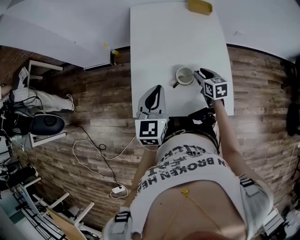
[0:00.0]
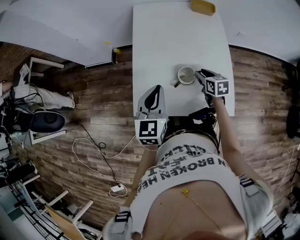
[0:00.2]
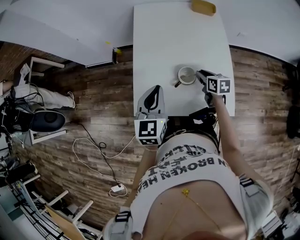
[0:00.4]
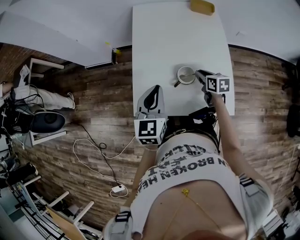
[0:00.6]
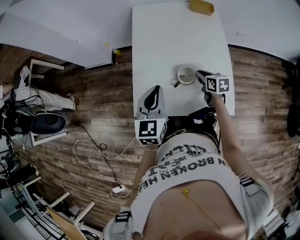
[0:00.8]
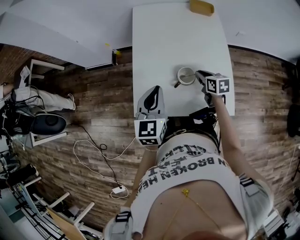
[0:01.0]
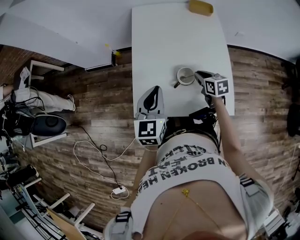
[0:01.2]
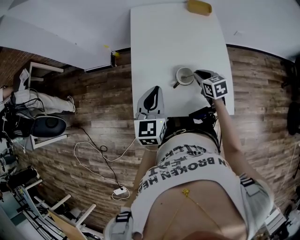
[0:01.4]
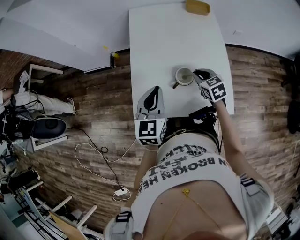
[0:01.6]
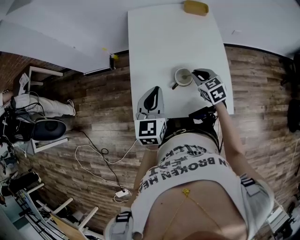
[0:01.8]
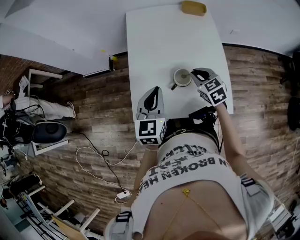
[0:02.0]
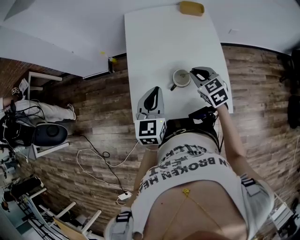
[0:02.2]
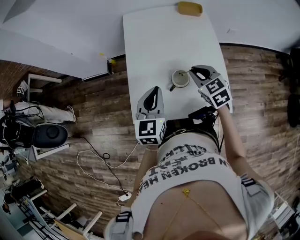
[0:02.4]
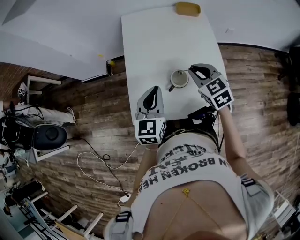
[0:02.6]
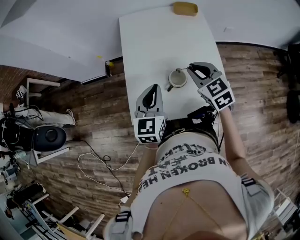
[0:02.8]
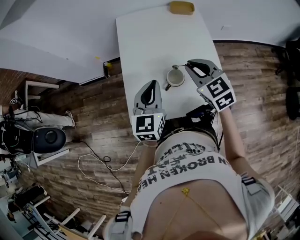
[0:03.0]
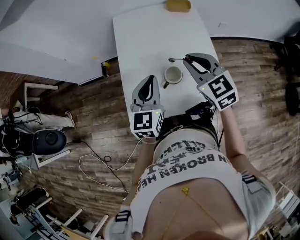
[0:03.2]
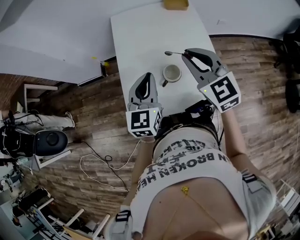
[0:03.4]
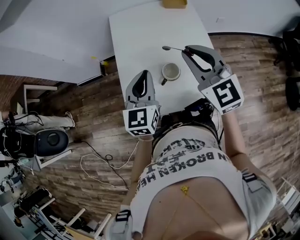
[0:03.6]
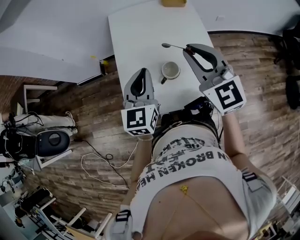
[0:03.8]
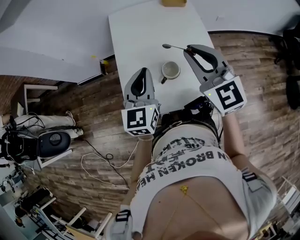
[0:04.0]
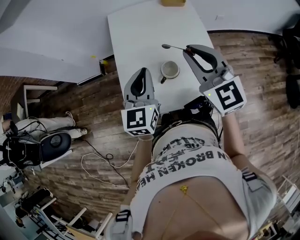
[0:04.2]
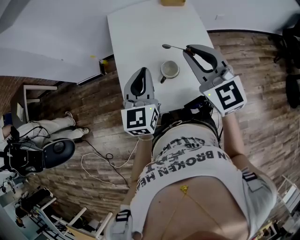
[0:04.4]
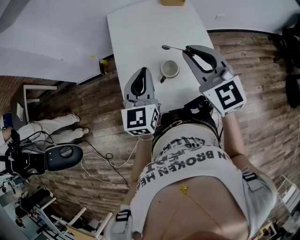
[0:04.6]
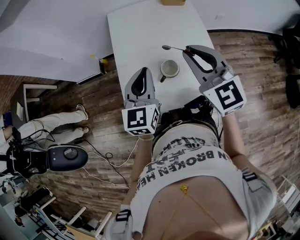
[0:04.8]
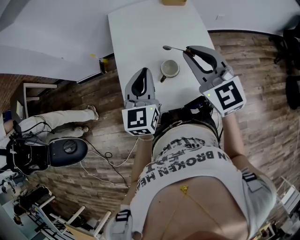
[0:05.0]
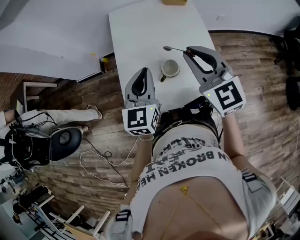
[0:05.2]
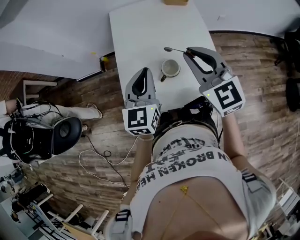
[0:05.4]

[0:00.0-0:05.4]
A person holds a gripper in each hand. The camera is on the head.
0:00.0 to 0:01.4: The right gripper closes its fingers.
0:01.4 to 0:02.8: The right gripper heads upward, covering roughly 15 cm, and turns by about 20 degrees.
0:02.8 to 0:04.0: The left gripper is displaced upward by some 5 cm; the right gripper travels upward by about 15 cm, and swivels some 30 degrees.
0:04.0 to 0:05.4: The grippers stay close to where they were, moving slightly.

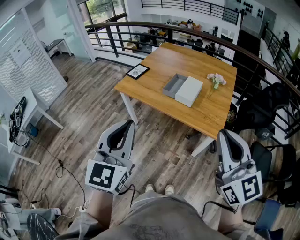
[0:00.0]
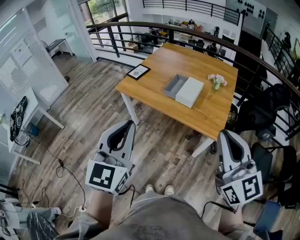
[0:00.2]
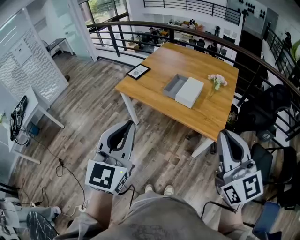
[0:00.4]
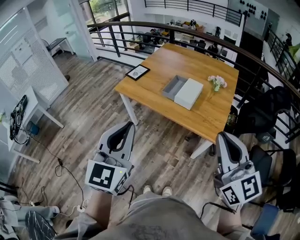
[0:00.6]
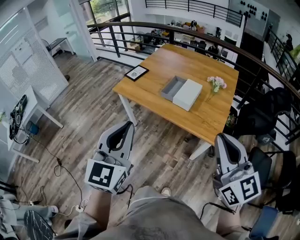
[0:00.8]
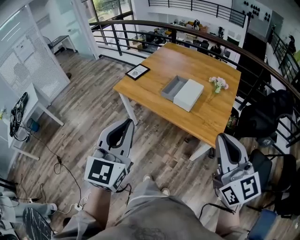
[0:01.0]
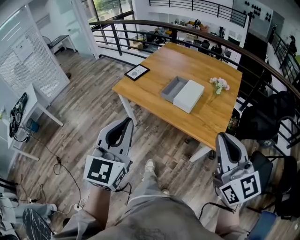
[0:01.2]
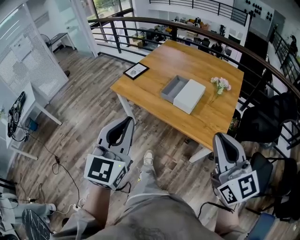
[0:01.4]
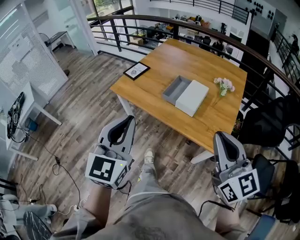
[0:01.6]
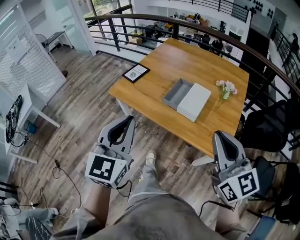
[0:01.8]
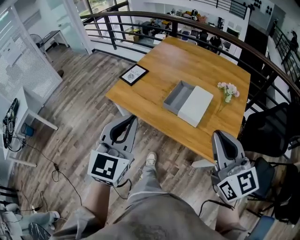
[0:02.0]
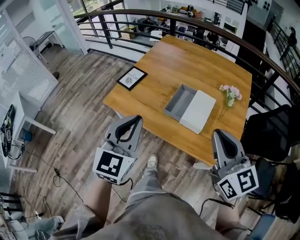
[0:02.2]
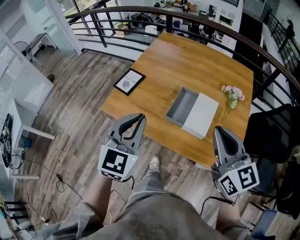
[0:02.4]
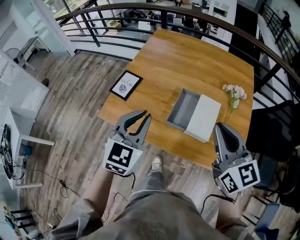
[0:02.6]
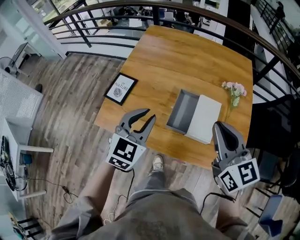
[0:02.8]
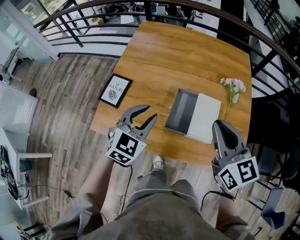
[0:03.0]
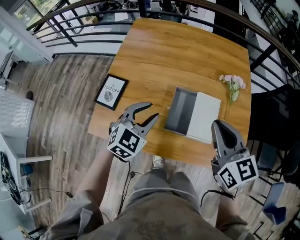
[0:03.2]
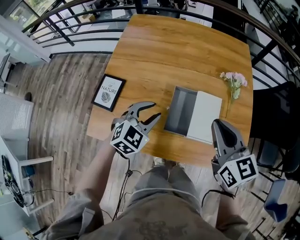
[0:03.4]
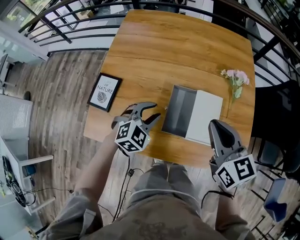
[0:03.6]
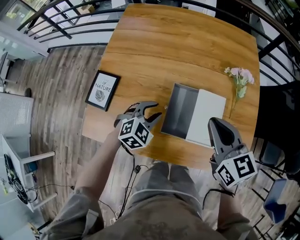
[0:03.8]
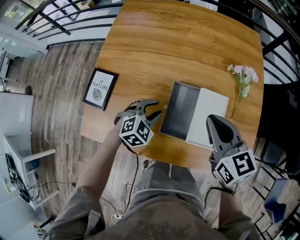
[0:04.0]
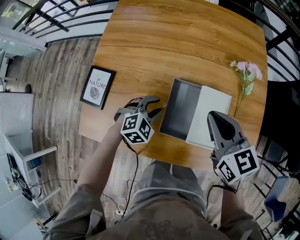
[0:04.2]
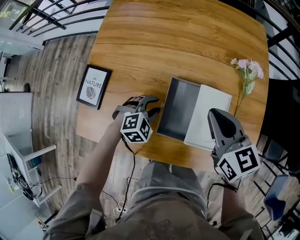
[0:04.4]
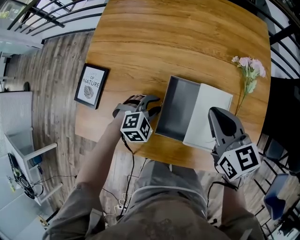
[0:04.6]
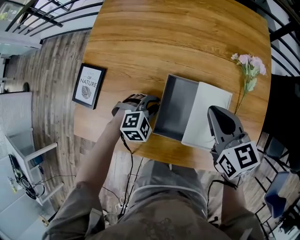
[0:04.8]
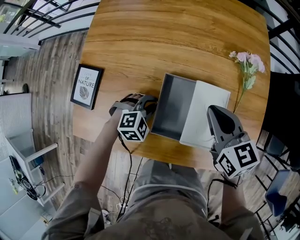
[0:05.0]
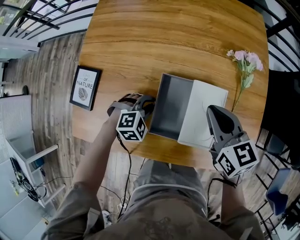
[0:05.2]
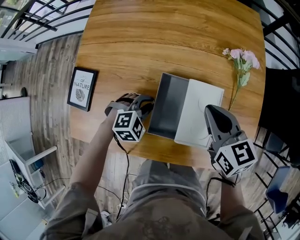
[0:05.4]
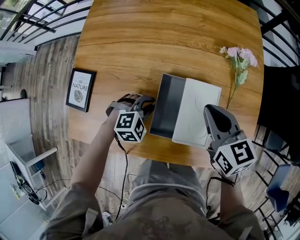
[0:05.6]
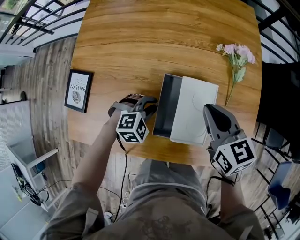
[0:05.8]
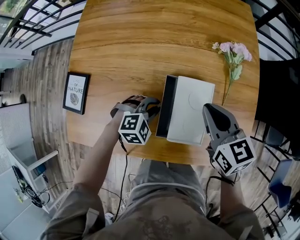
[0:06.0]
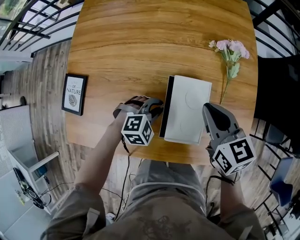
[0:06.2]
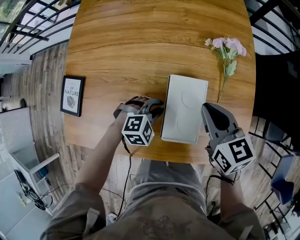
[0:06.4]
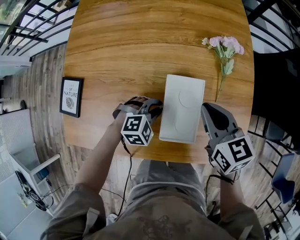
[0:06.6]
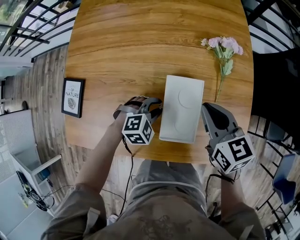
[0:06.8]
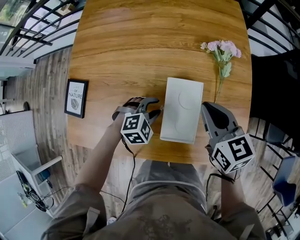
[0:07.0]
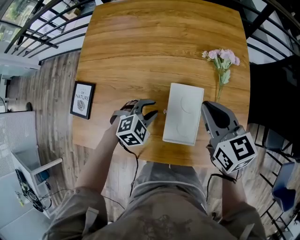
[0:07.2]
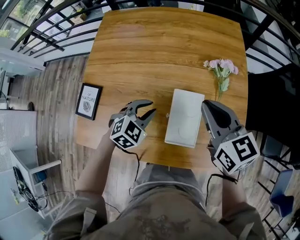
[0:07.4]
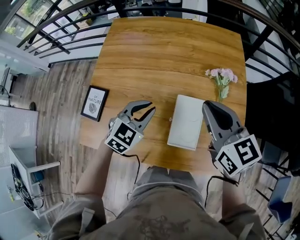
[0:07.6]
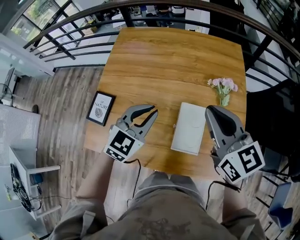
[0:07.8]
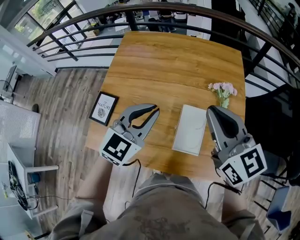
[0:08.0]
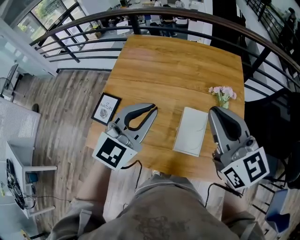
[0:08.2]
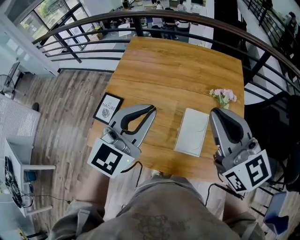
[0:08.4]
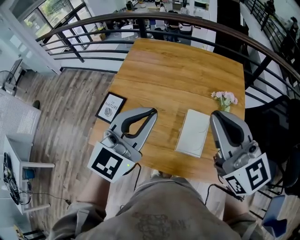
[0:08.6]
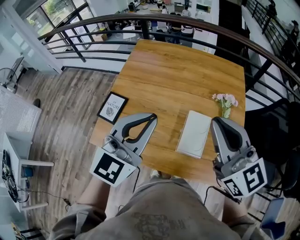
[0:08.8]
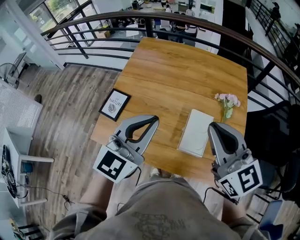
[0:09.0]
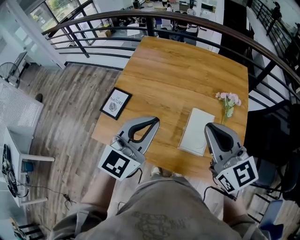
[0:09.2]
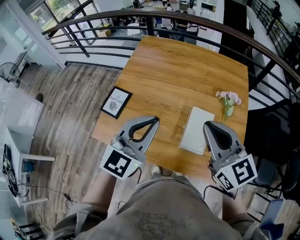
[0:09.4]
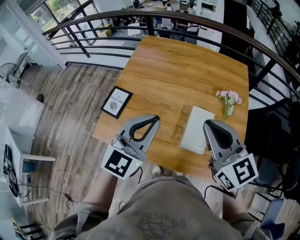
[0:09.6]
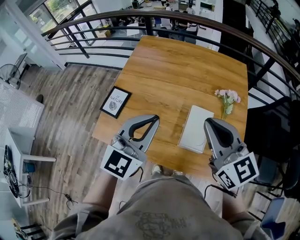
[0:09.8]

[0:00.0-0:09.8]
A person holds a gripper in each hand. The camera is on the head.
0:00.0 to 0:01.4: The left gripper is displaced forward by some 10 cm. The right gripper travels forward and downward by approximately 10 cm.
0:01.4 to 0:02.8: Both grippers move forward, approximately 40 cm. The left gripper rotates roughly 30 degrees.
0:02.8 to 0:04.2: Both grippers move downward and forward, about 25 cm. The left gripper turns by approximately 40 degrees.
0:04.2 to 0:05.6: The right gripper is displaced downward and to the right by roughly 5 cm. The left gripper ends up about 5 cm from where it was.
0:05.6 to 0:07.0: Both grippers travel together to the right, approximately 5 cm. The left gripper opens up.
0:07.0 to 0:08.4: Both grippers travel together upward, approximately 35 cm. The right gripper swivels about 30 degrees; the left gripper tips its fingers upward by some 60 degrees, and closes up.
0:08.4 to 0:09.8: The right gripper travels downward by some 5 cm. Meanwhile the left gripper ends up roughly 5 cm from where it was.

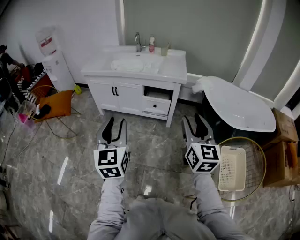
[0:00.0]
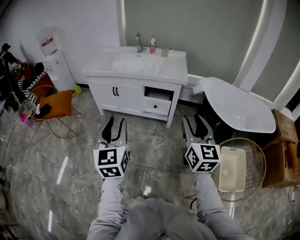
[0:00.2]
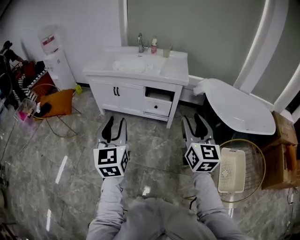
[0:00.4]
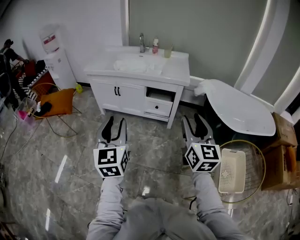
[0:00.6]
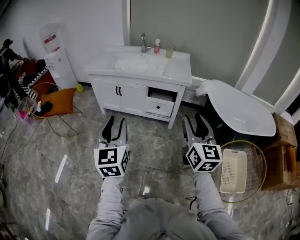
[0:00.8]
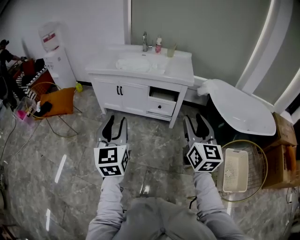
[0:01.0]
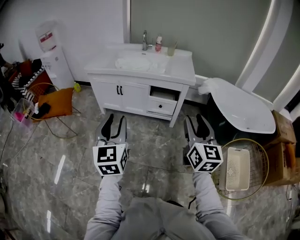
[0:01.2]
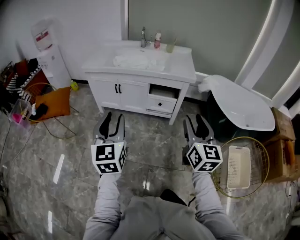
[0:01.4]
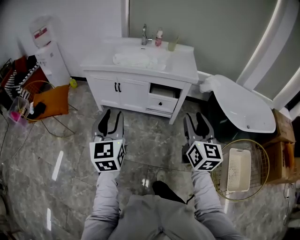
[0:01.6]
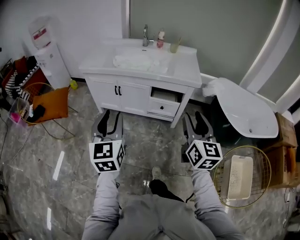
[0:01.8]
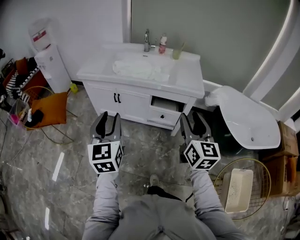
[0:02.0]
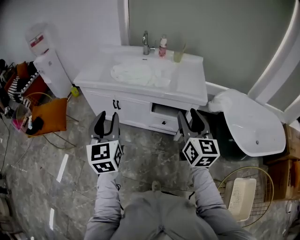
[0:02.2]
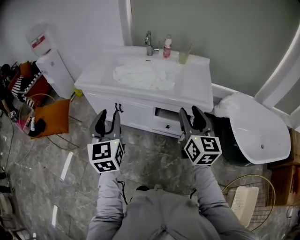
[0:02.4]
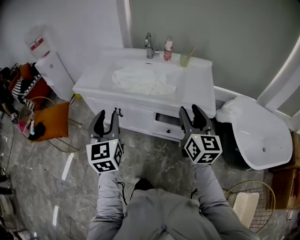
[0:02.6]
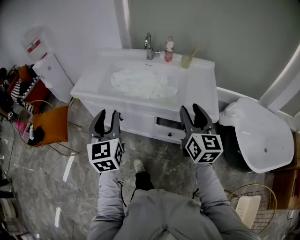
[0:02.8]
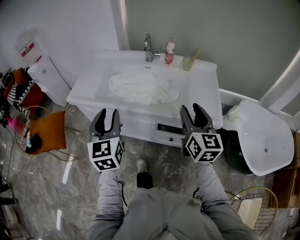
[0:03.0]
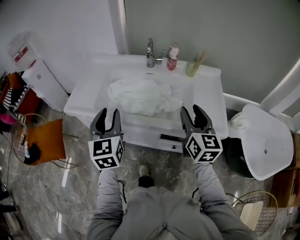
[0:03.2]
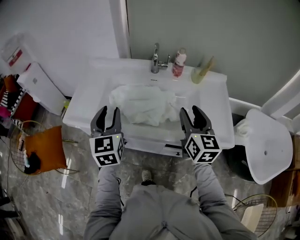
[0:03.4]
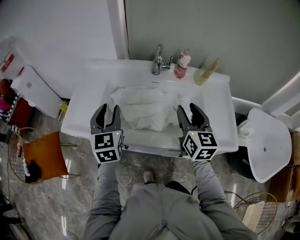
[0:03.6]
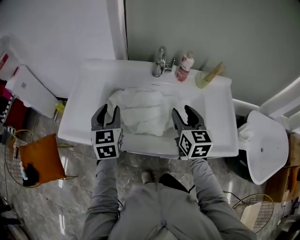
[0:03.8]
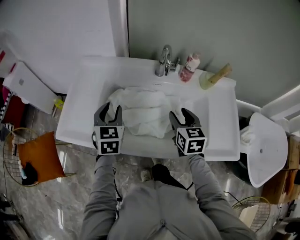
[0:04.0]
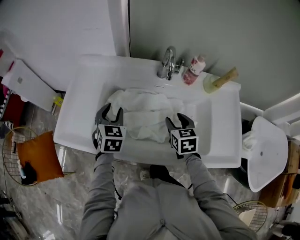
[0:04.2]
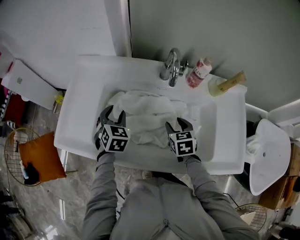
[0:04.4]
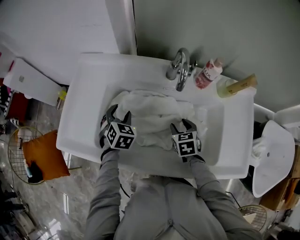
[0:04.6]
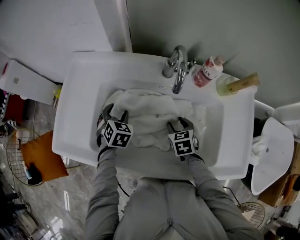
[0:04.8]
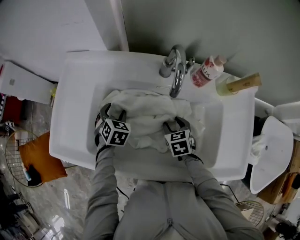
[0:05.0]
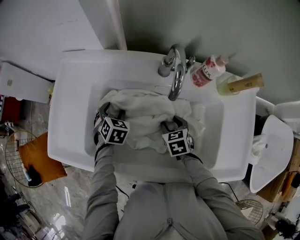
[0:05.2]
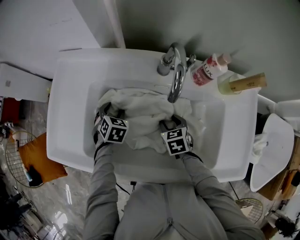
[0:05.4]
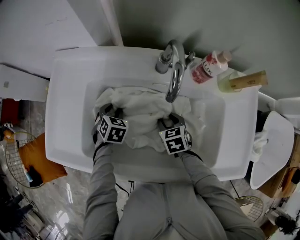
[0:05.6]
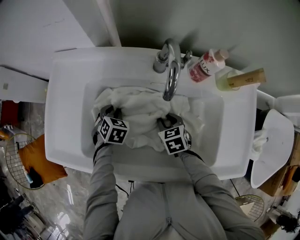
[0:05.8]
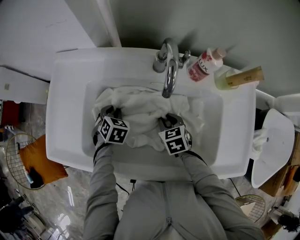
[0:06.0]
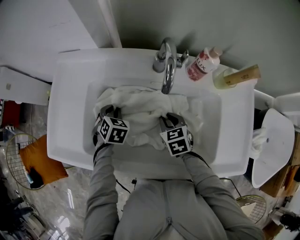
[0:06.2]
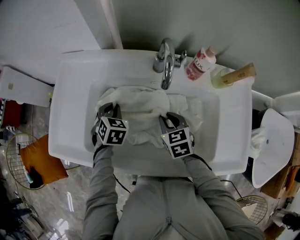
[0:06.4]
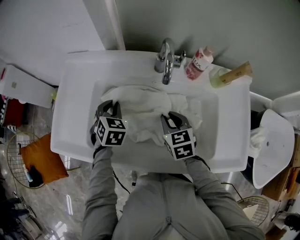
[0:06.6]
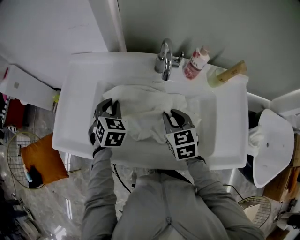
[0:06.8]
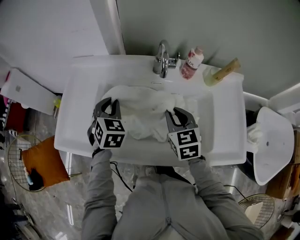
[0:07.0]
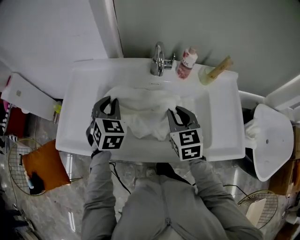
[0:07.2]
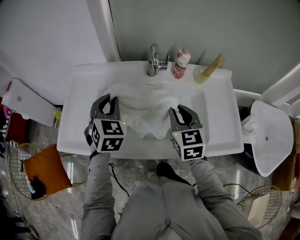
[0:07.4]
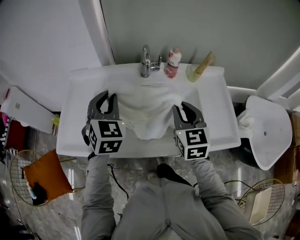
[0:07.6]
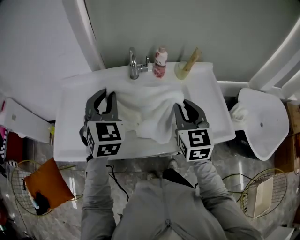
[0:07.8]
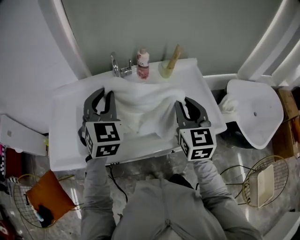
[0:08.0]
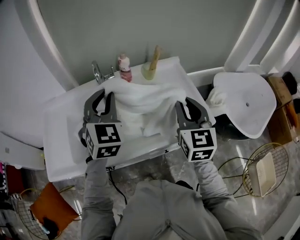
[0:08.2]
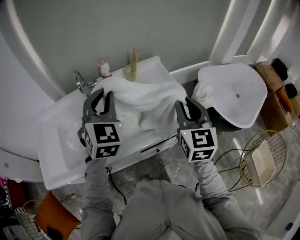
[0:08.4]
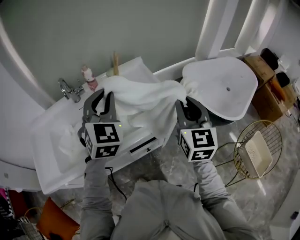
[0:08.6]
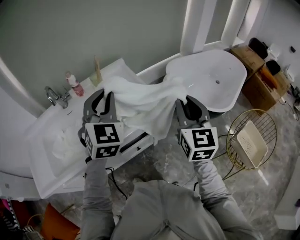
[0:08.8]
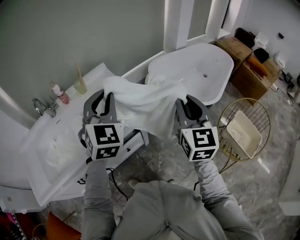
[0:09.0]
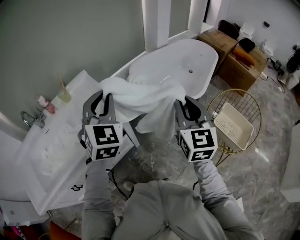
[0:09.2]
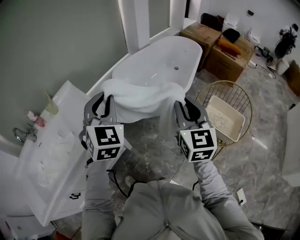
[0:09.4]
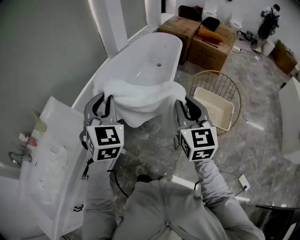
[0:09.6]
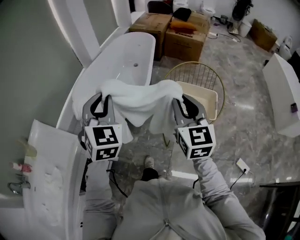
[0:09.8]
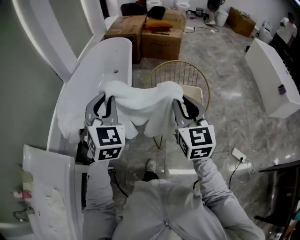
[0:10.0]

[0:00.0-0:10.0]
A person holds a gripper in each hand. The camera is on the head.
0:00.0 to 0:01.4: The right gripper is displaced to the left by roughly 10 cm; the left gripper moves to the left and forward, roughly 10 cm.
0:01.4 to 0:02.8: The two grippers go about 40 cm forward.
0:02.8 to 0:04.2: The right gripper shifts roughly 40 cm forward and downward, and tilts its fingers roughly 40 degrees downward. The left gripper shifts about 40 cm forward, and changes its angle by approximately 30 degrees.
0:04.2 to 0:05.8: Both grippers move downward, approximately 15 cm. The left gripper rotates approximately 30 degrees.
0:05.8 to 0:07.2: Both grippers travel together upward, some 25 cm. The right gripper turns by roughly 30 degrees; the left gripper changes its angle by roughly 30 degrees.
0:07.2 to 0:08.6: The left gripper moves approximately 40 cm, and turns by roughly 40 degrees. Meanwhile the right gripper changes place by approximately 40 cm, and rotates about 40 degrees.
0:08.6 to 0:10.0: The two grippers travel together, approximately 60 cm. The right gripper turns by roughly 50 degrees; the left gripper rotates approximately 50 degrees.
